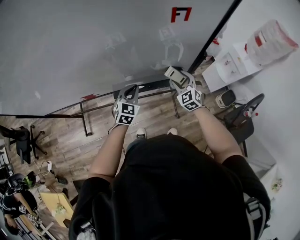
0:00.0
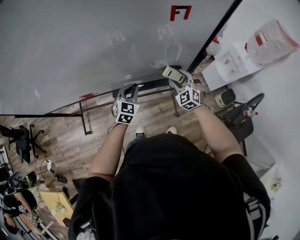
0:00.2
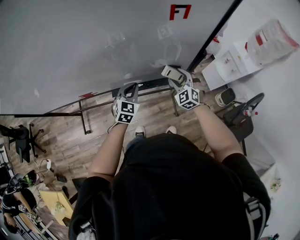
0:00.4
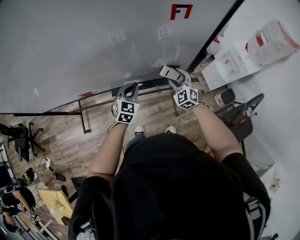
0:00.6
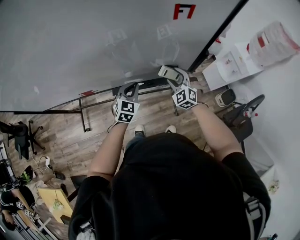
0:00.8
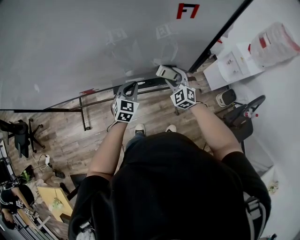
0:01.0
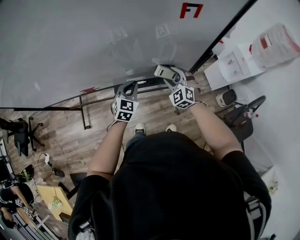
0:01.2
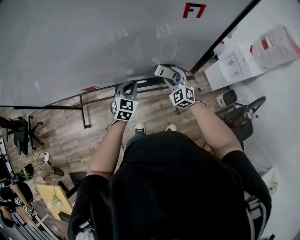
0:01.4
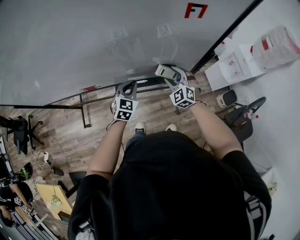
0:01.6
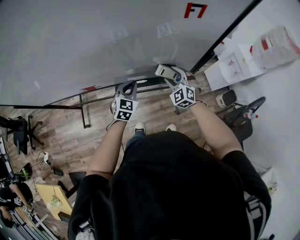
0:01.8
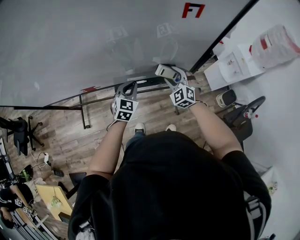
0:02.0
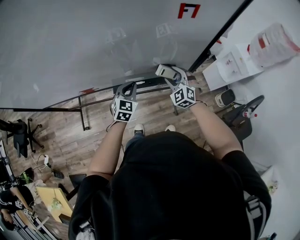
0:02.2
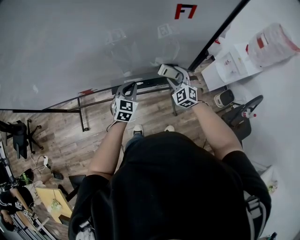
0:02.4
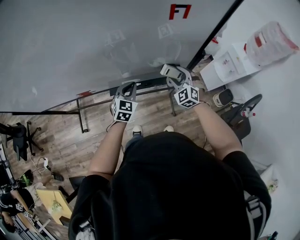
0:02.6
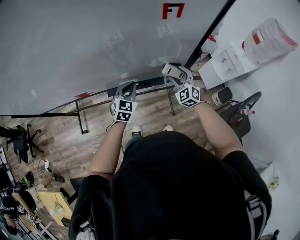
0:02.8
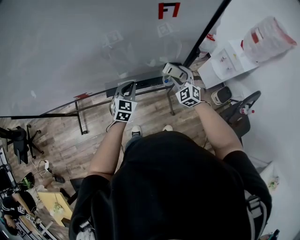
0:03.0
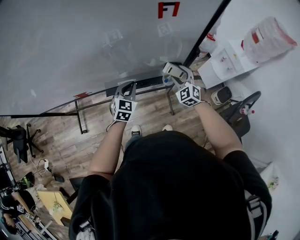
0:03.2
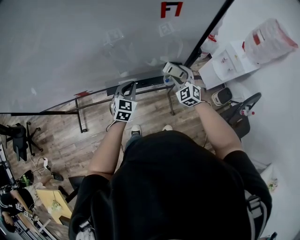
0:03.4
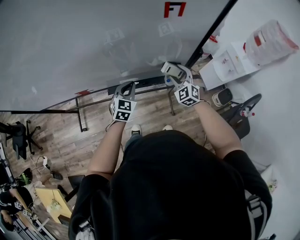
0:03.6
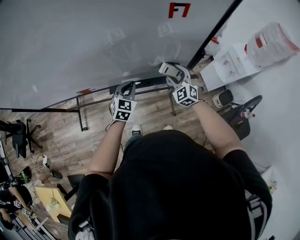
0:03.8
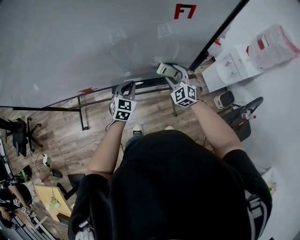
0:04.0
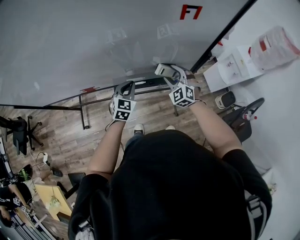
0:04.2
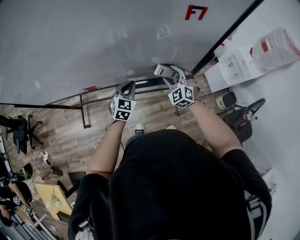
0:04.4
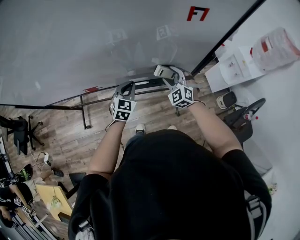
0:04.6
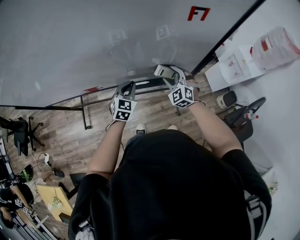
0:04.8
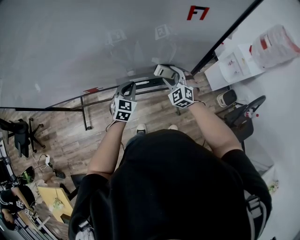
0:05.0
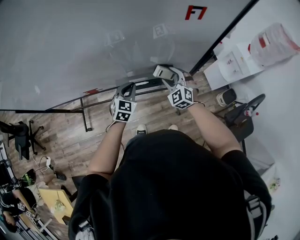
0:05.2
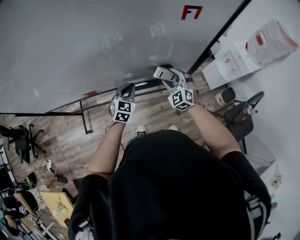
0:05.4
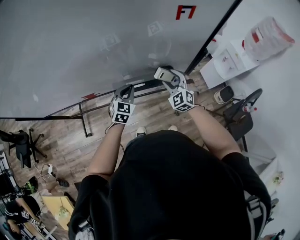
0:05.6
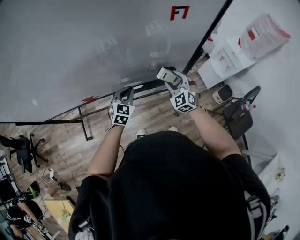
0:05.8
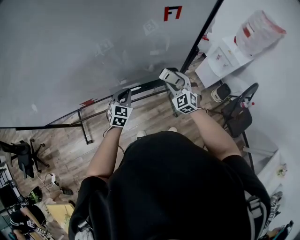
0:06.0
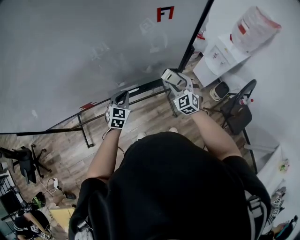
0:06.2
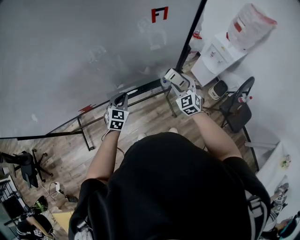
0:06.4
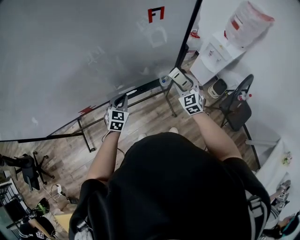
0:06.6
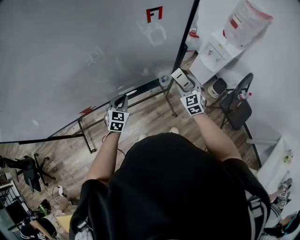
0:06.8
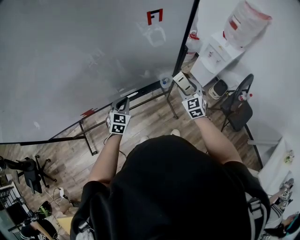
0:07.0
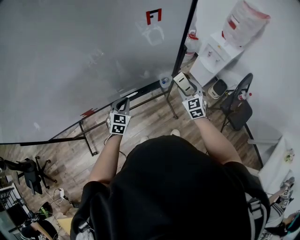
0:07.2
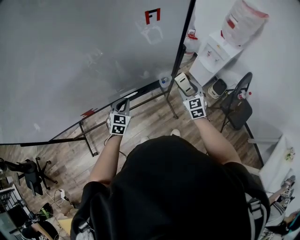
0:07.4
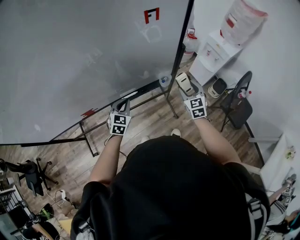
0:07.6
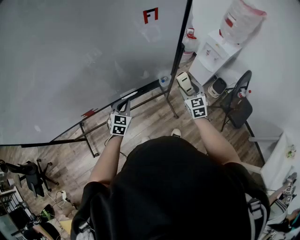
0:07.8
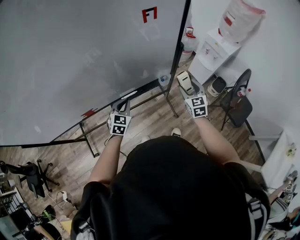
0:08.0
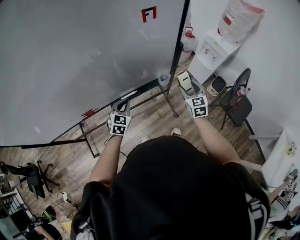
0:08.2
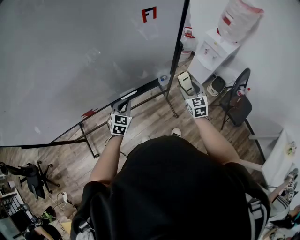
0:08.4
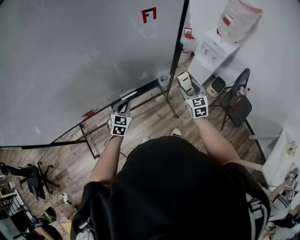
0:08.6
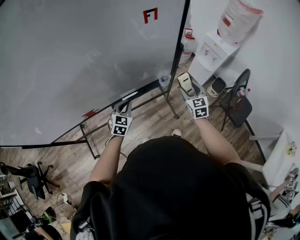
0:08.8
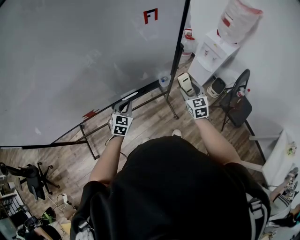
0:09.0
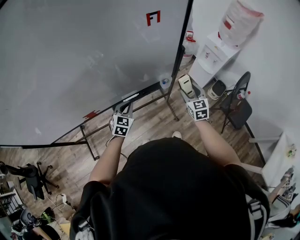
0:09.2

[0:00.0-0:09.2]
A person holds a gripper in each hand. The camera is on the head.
0:00.0 to 0:01.6: The right gripper is displaced to the left by roughly 5 cm.
0:01.6 to 0:03.0: The left gripper moves to the right, roughly 5 cm. Meanwhile the right gripper goes roughly 10 cm to the right.
0:03.0 to 0:04.6: The right gripper goes roughly 10 cm to the left. Meanwhile the left gripper heads to the left, covering some 5 cm.
0:04.6 to 0:06.2: The right gripper travels to the right by about 10 cm, and swivels about 20 degrees.
0:06.2 to 0:07.6: The right gripper goes some 10 cm to the right, and swivels approximately 30 degrees.
0:07.6 to 0:09.2: The grippers move only a little.

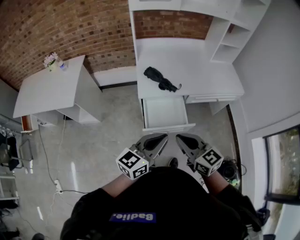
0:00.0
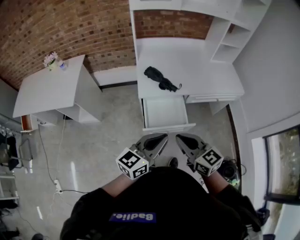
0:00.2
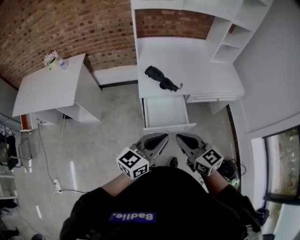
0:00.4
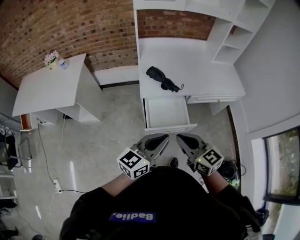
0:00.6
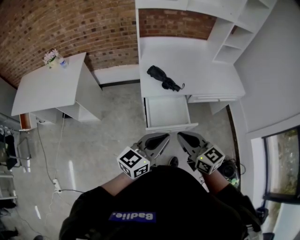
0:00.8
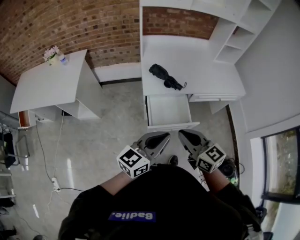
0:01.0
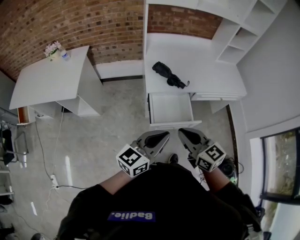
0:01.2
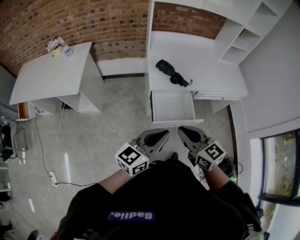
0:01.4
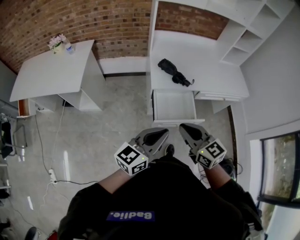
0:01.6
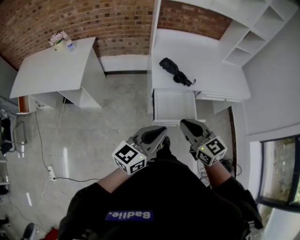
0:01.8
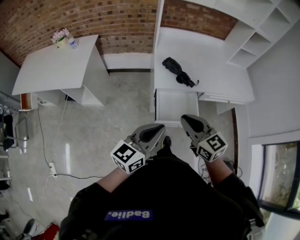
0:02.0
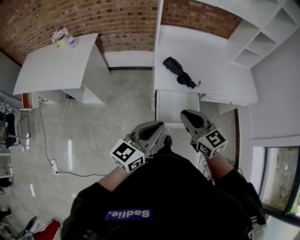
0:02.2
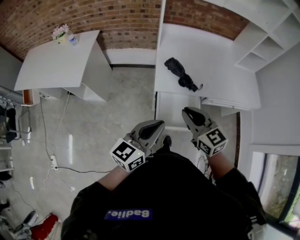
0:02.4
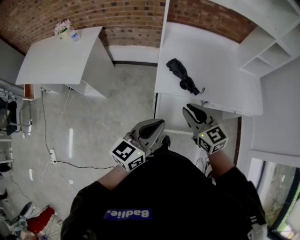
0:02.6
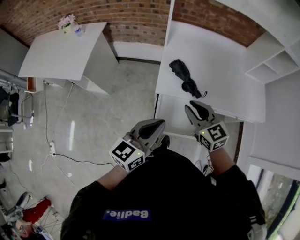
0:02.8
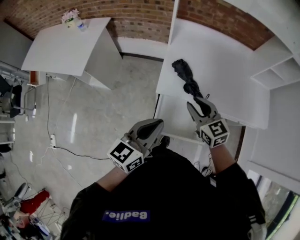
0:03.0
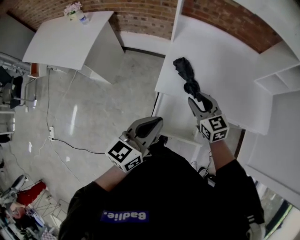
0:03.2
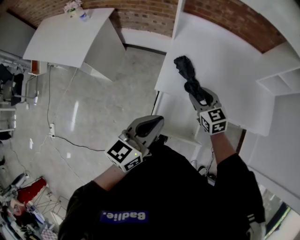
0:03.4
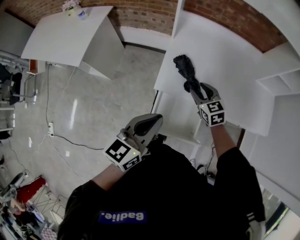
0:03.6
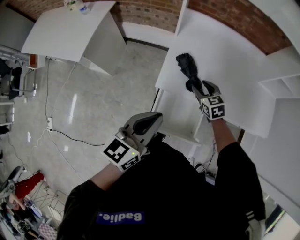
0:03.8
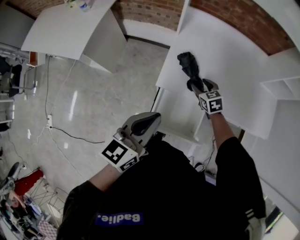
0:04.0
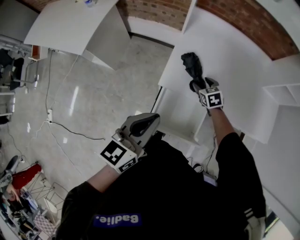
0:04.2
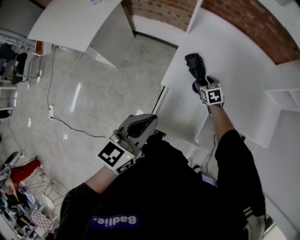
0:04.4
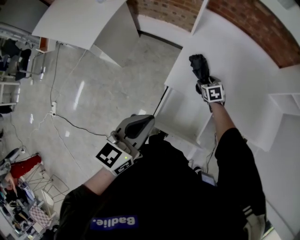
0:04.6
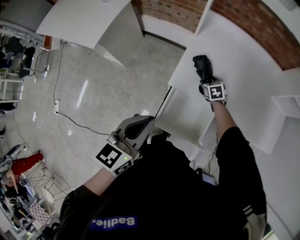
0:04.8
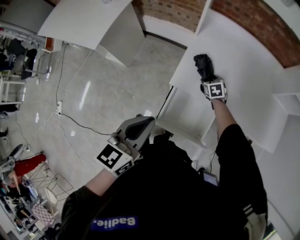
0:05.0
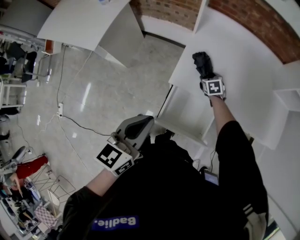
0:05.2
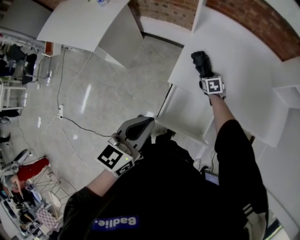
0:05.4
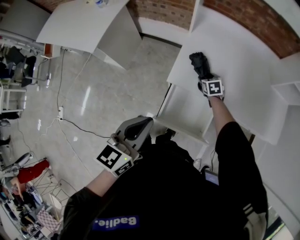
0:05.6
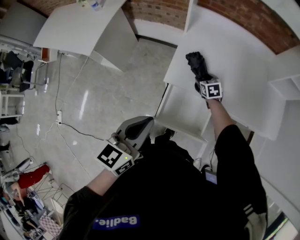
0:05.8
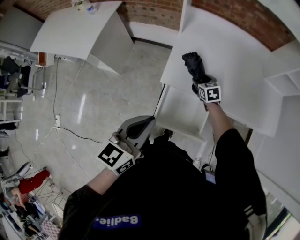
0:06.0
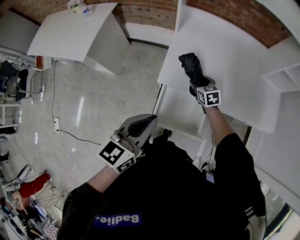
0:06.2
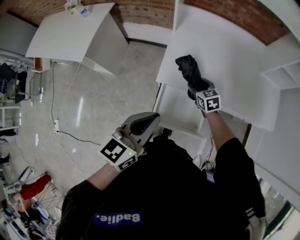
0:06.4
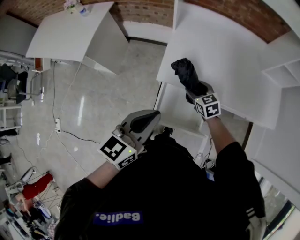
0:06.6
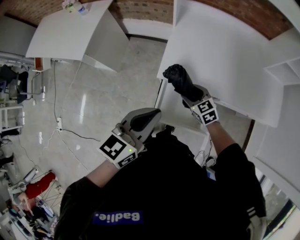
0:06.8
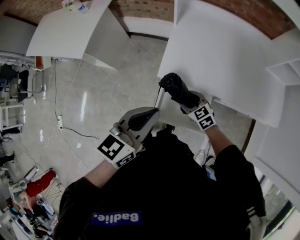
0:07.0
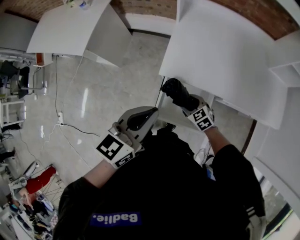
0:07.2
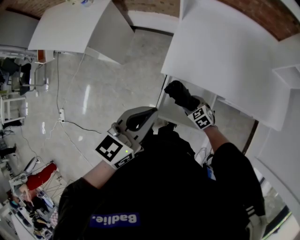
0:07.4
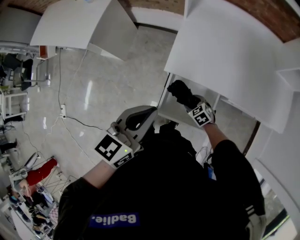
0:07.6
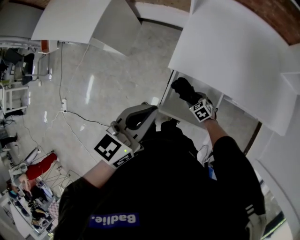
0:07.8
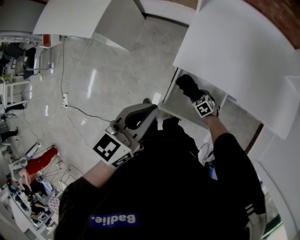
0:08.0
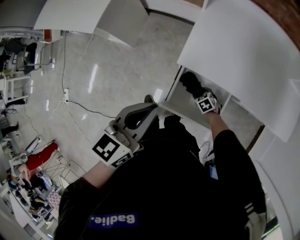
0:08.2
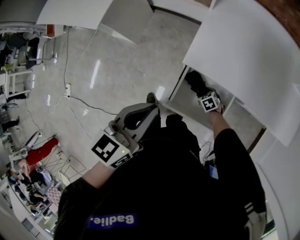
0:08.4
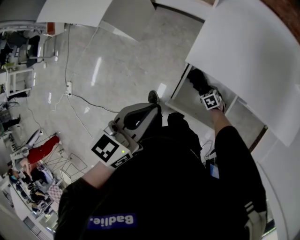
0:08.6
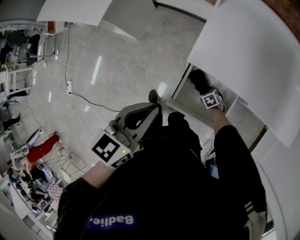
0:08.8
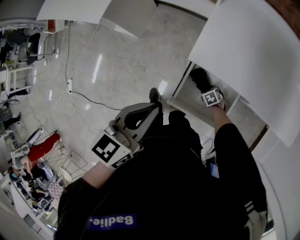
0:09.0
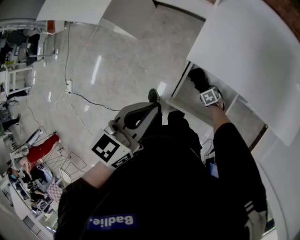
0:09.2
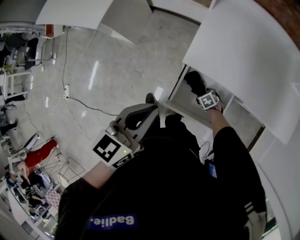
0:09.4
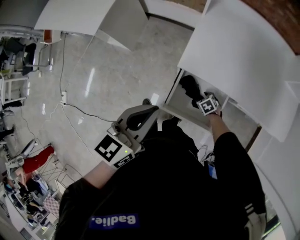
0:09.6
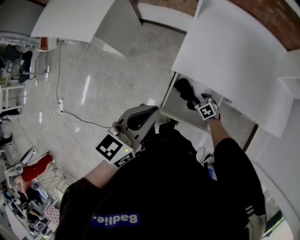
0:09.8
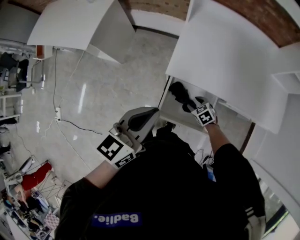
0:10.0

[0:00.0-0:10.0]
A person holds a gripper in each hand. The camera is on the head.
0:00.0 to 0:01.4: The two grippers go some 10 cm to the left.
0:01.4 to 0:02.8: The two grippers go roughly 20 cm forward.
0:02.8 to 0:04.2: The right gripper heads downward and forward, covering about 30 cm, angles its fingers downward, by some 30 degrees, and opens, while the left gripper shifts some 5 cm forward.
0:04.2 to 0:05.8: The left gripper ends up about 5 cm from where it was.
0:05.8 to 0:07.2: The right gripper heads backward, covering roughly 20 cm, and swivels roughly 20 degrees.
0:07.2 to 0:08.6: The right gripper travels downward by approximately 20 cm, and changes its angle by some 20 degrees. The left gripper travels to the left by approximately 5 cm.
0:08.6 to 0:10.0: The right gripper shifts about 15 cm upward.

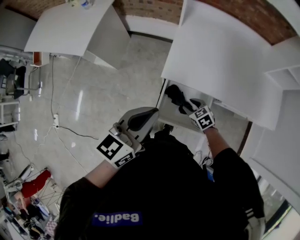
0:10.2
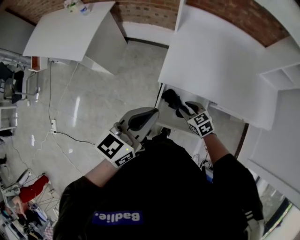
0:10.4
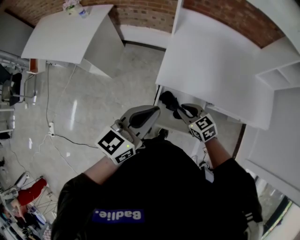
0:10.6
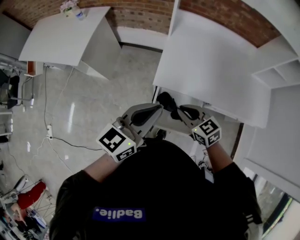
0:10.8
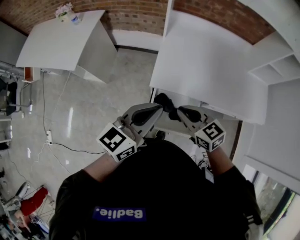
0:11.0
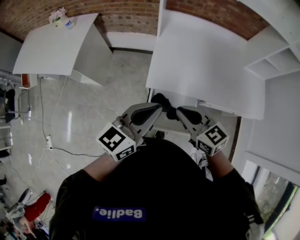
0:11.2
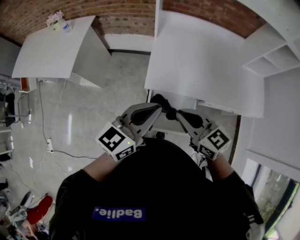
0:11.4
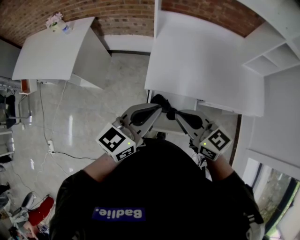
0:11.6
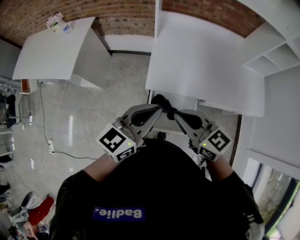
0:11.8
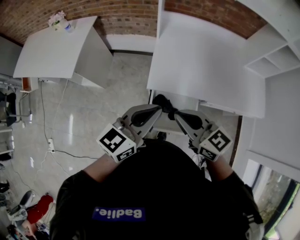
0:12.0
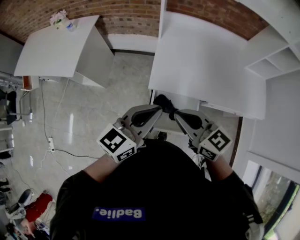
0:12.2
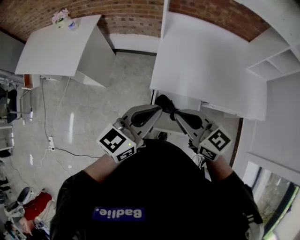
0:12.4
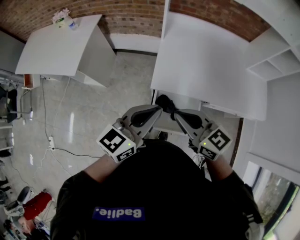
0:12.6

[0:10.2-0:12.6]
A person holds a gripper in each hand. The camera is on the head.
0:10.2 to 0:11.4: The left gripper shifts by approximately 5 cm, while the right gripper heads upward, covering some 30 cm, tips its fingers upward by roughly 30 degrees, and closes its fingers.
0:11.4 to 0:12.6: The grippers make only small movements.

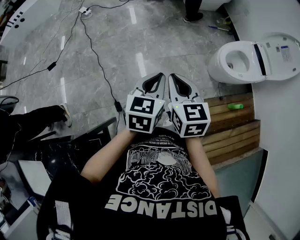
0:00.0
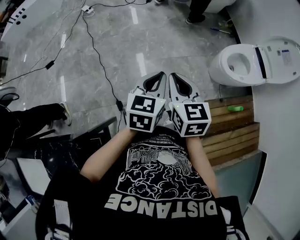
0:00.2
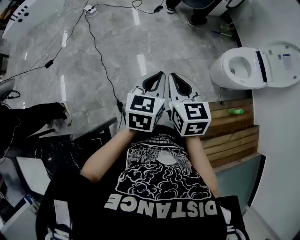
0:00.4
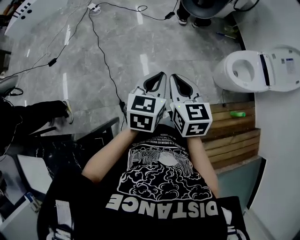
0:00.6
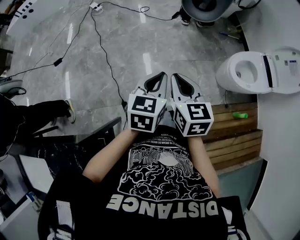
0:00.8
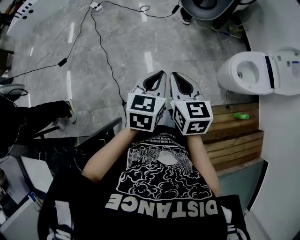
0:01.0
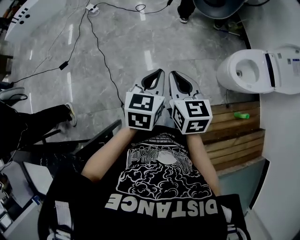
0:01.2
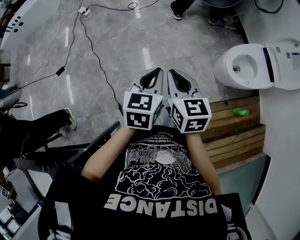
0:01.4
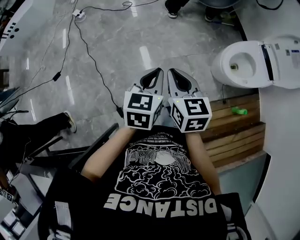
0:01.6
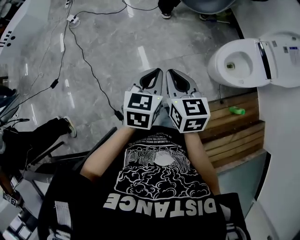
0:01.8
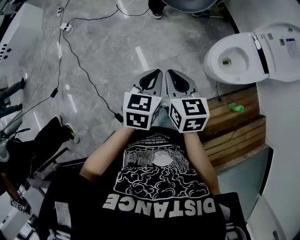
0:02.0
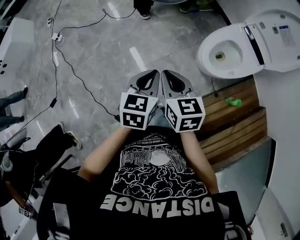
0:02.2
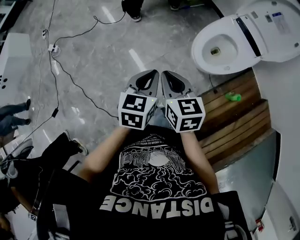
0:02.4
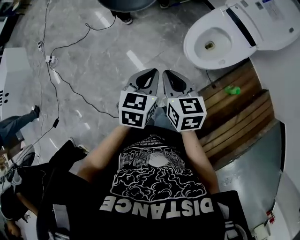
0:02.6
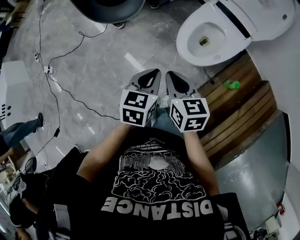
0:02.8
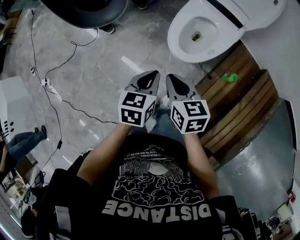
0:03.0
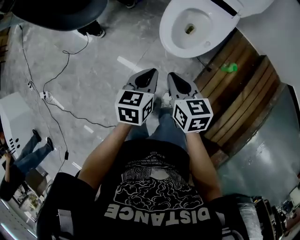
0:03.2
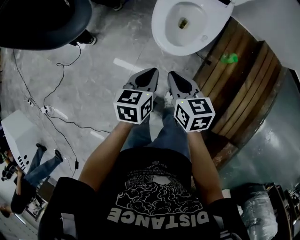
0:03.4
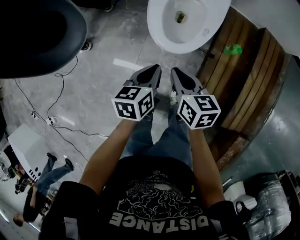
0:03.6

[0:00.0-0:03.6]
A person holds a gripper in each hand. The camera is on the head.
0:00.0 to 0:01.8: Both grippers move forward and to the right, about 20 cm.
0:01.8 to 0:03.6: The right gripper shifts by approximately 40 cm, and turns by roughly 60 degrees, while the left gripper ends up about 40 cm from where it was, and changes its angle by some 50 degrees.
